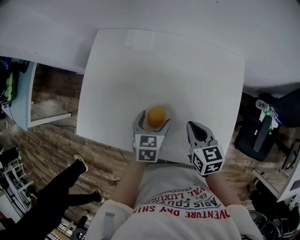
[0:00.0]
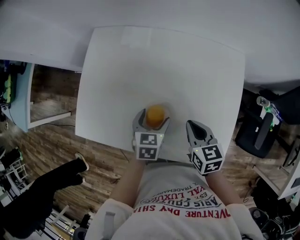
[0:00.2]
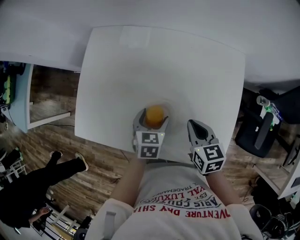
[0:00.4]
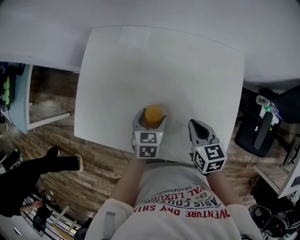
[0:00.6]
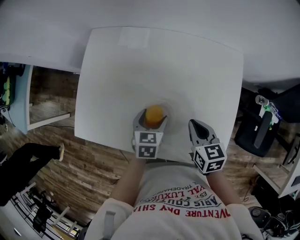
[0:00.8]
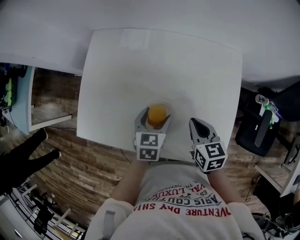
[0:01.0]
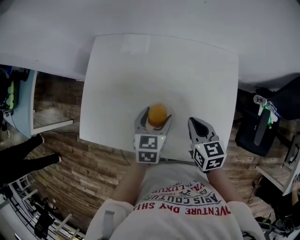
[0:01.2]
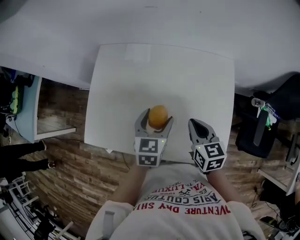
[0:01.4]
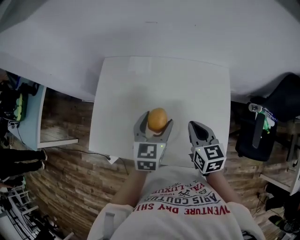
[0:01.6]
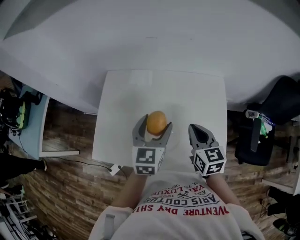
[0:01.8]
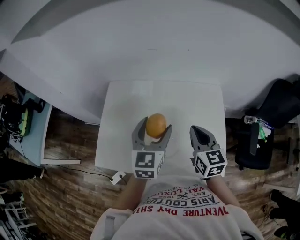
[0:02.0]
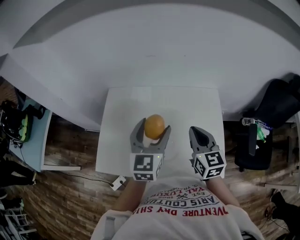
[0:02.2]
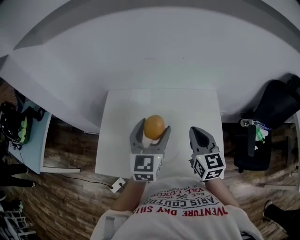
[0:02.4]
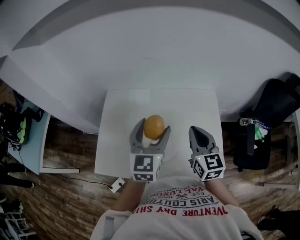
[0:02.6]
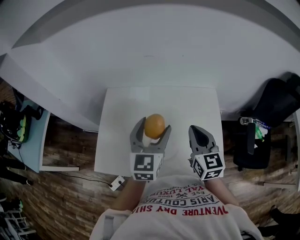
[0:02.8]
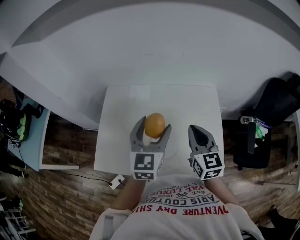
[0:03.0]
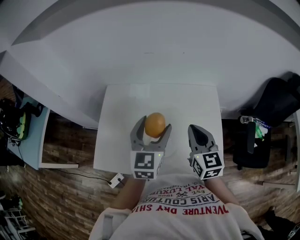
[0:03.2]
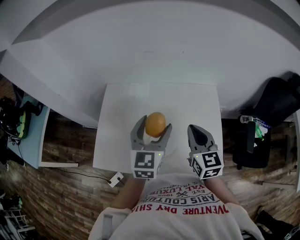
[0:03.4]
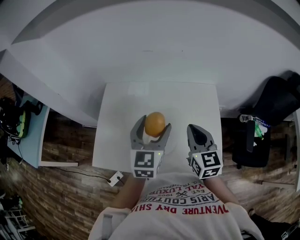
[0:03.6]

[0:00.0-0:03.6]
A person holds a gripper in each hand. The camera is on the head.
0:00.0 to 0:01.8: The left gripper heads upward, covering approximately 20 cm, and rotates roughly 30 degrees. Meanwhile the right gripper travels upward by roughly 15 cm.
0:01.8 to 0:03.6: Both grippers move upward, some 5 cm.

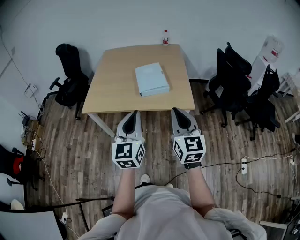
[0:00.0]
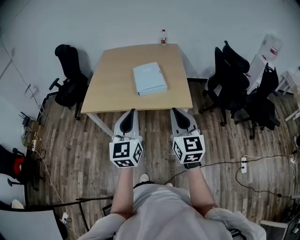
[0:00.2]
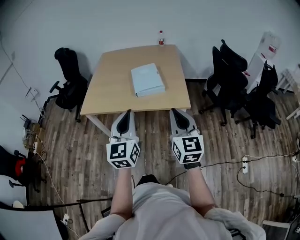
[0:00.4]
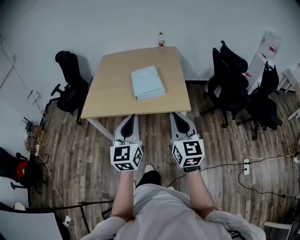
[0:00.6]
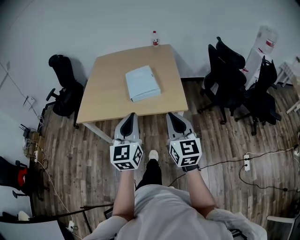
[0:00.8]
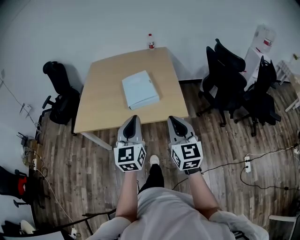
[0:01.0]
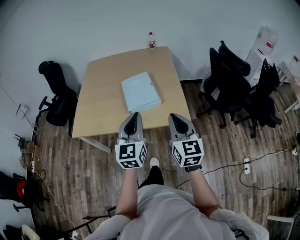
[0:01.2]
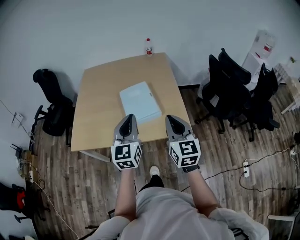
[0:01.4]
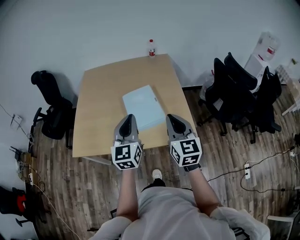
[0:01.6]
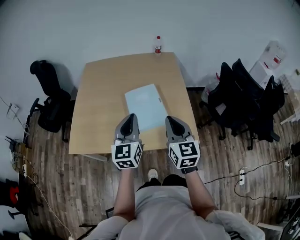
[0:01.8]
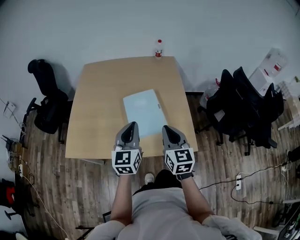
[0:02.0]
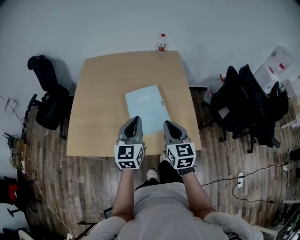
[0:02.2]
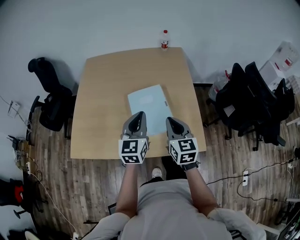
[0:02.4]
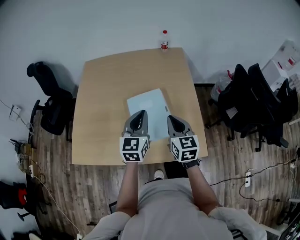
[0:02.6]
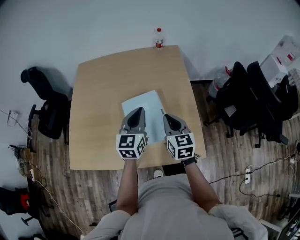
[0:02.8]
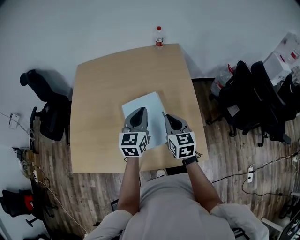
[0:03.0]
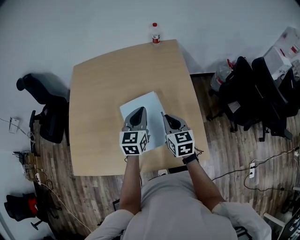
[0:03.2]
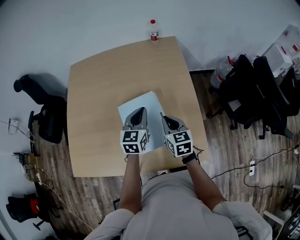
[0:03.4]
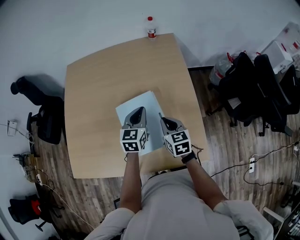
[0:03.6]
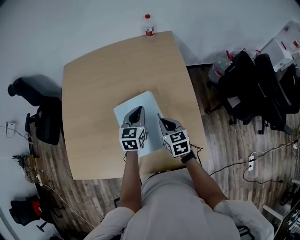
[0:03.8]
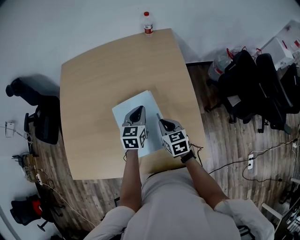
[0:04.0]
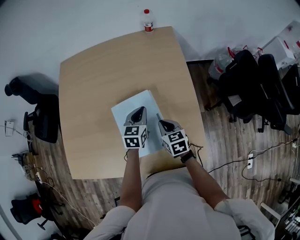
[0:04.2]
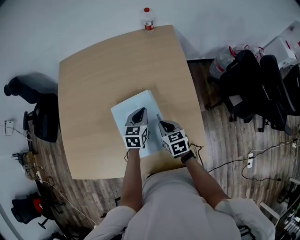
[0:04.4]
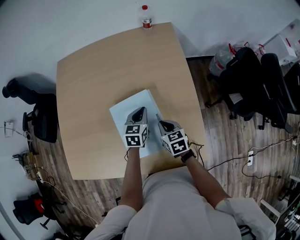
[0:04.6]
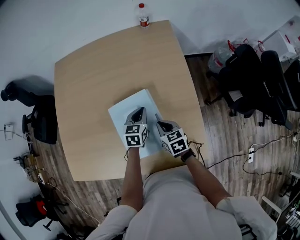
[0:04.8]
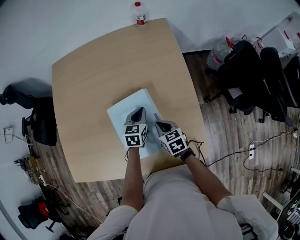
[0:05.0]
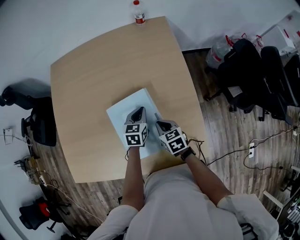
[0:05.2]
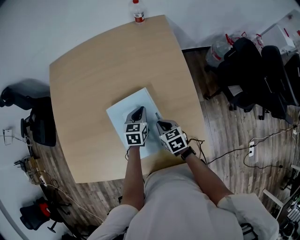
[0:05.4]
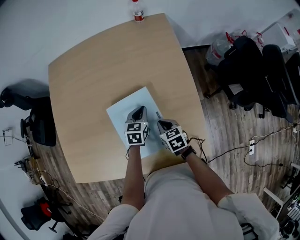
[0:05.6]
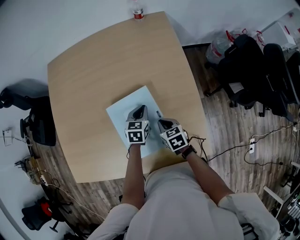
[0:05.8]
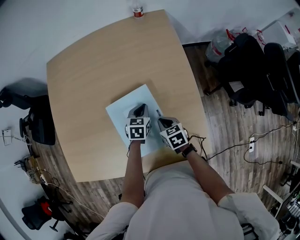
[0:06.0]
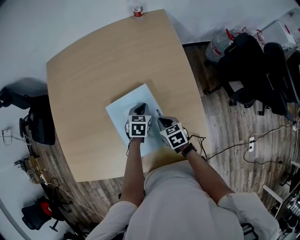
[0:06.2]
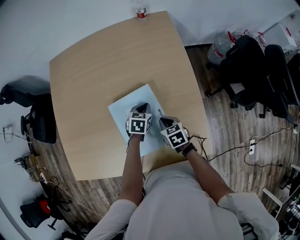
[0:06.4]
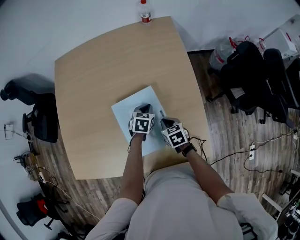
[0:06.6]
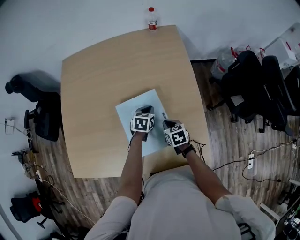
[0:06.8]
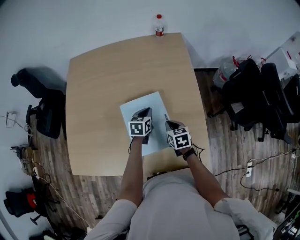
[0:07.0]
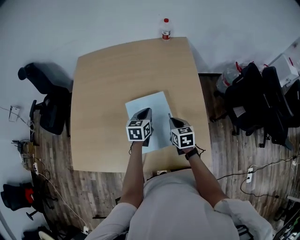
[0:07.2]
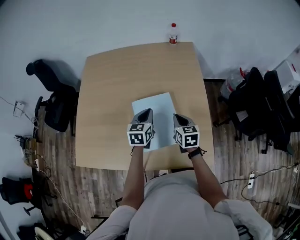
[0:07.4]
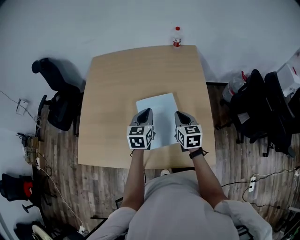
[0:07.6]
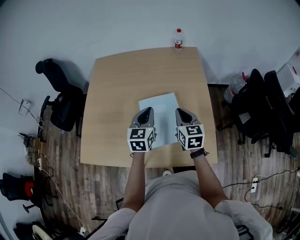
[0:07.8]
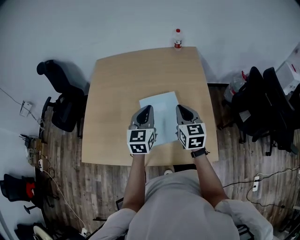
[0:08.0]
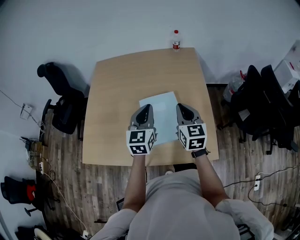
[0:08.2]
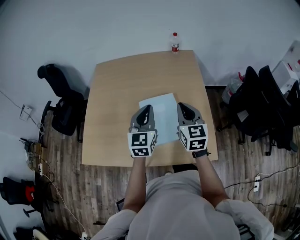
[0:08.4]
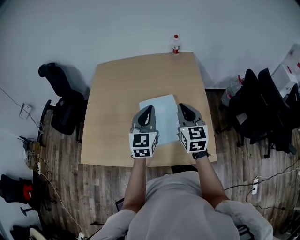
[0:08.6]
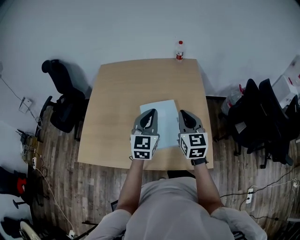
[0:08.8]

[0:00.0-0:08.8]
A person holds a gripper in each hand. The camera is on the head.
0:00.0 to 0:01.4: Both grippers move forward, roughly 25 cm.
0:01.4 to 0:03.0: The right gripper heads forward and downward, covering about 35 cm; the left gripper goes about 30 cm forward.
0:03.0 to 0:04.4: The right gripper shifts approximately 15 cm downward, and changes its angle by some 20 degrees. The left gripper shifts some 20 cm downward and forward, and turns by roughly 20 degrees.
0:04.4 to 0:05.8: The grippers both shift downward by approximately 5 cm.
0:05.8 to 0:07.4: The right gripper goes approximately 10 cm upward; the left gripper travels upward and to the left by about 15 cm.
0:07.4 to 0:08.8: Both grippers travel together upward and backward, some 20 cm. The left gripper swivels some 30 degrees. The right gripper turns by some 30 degrees.

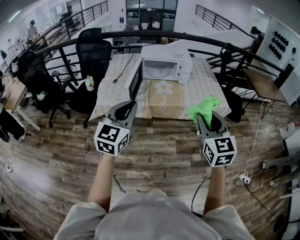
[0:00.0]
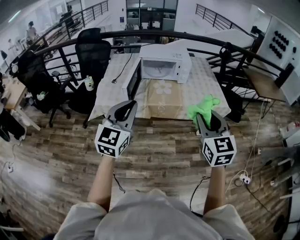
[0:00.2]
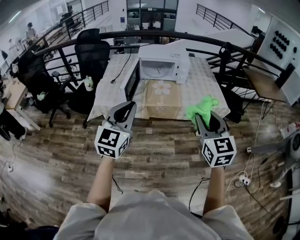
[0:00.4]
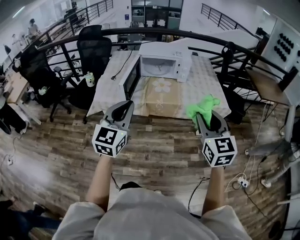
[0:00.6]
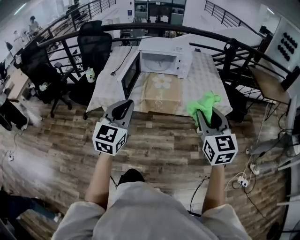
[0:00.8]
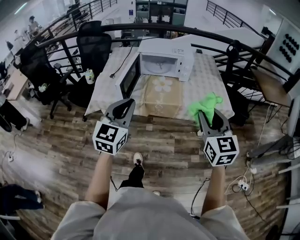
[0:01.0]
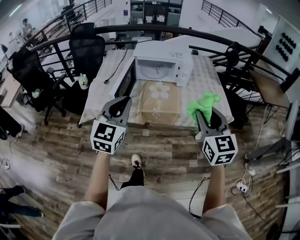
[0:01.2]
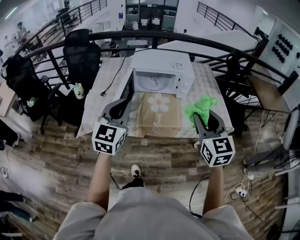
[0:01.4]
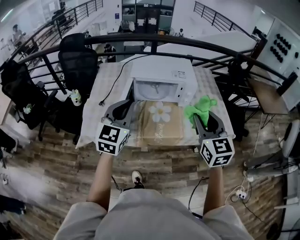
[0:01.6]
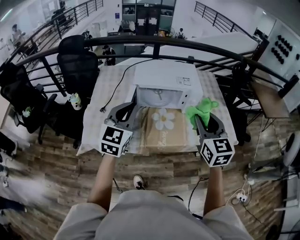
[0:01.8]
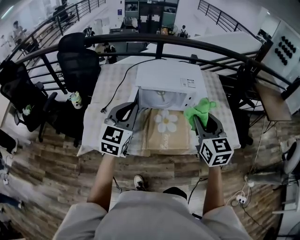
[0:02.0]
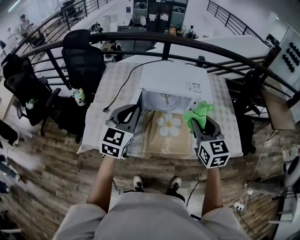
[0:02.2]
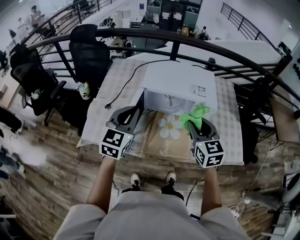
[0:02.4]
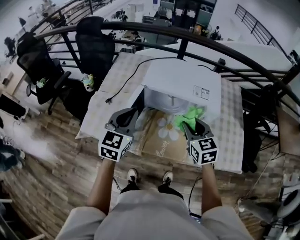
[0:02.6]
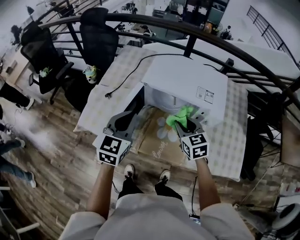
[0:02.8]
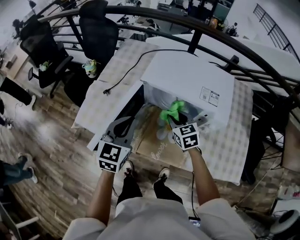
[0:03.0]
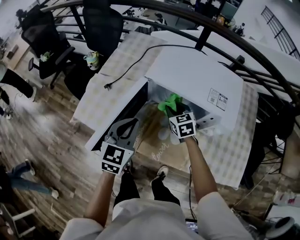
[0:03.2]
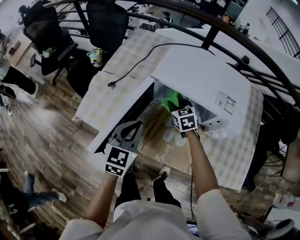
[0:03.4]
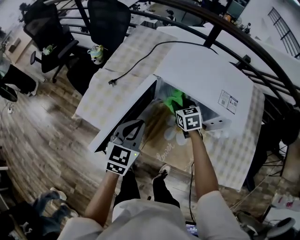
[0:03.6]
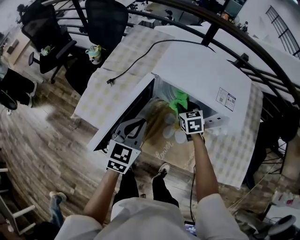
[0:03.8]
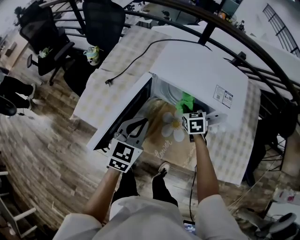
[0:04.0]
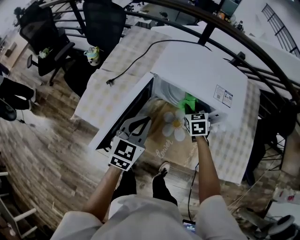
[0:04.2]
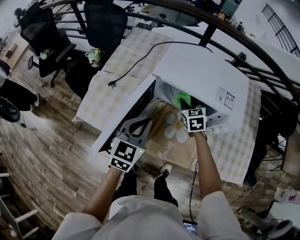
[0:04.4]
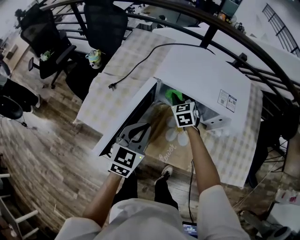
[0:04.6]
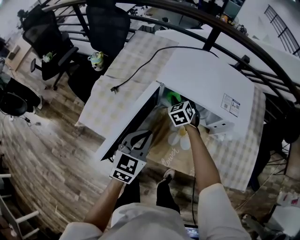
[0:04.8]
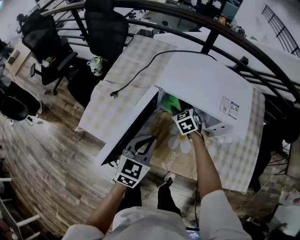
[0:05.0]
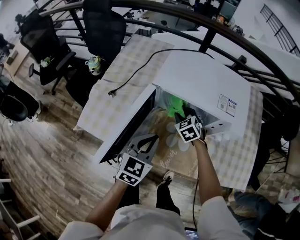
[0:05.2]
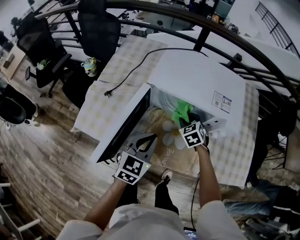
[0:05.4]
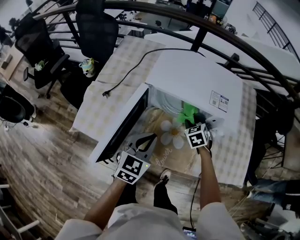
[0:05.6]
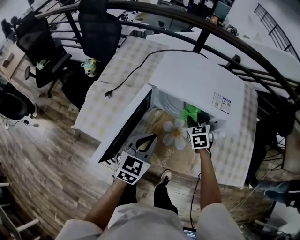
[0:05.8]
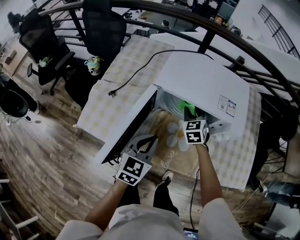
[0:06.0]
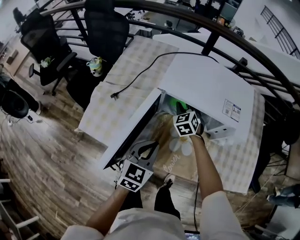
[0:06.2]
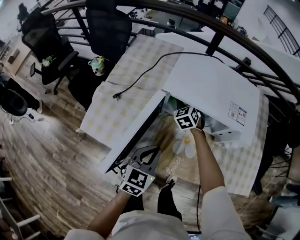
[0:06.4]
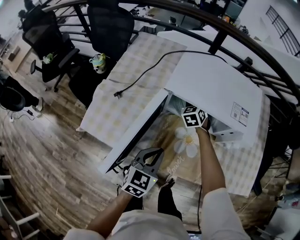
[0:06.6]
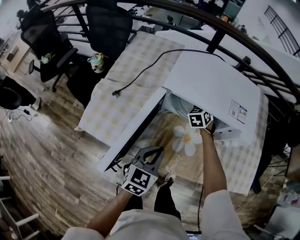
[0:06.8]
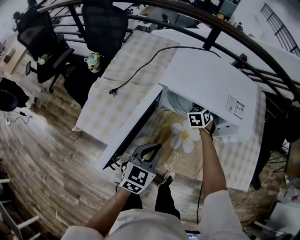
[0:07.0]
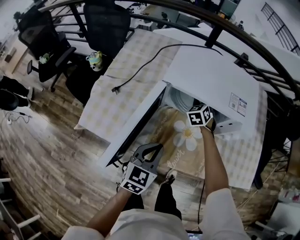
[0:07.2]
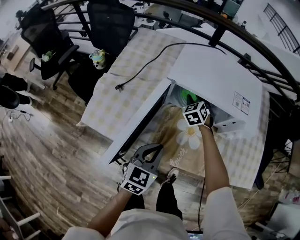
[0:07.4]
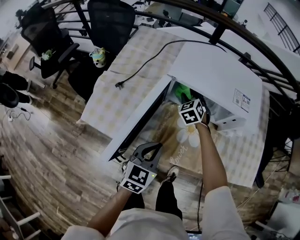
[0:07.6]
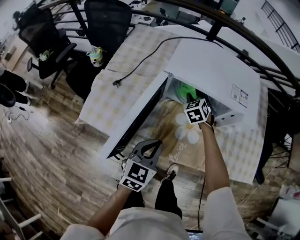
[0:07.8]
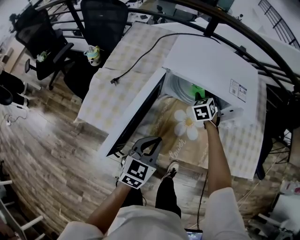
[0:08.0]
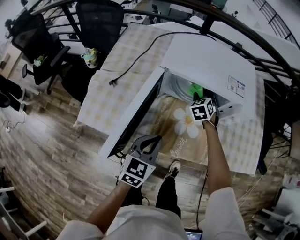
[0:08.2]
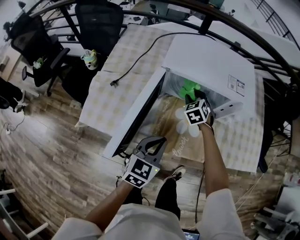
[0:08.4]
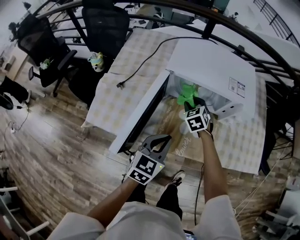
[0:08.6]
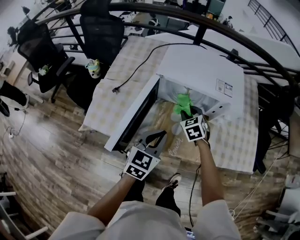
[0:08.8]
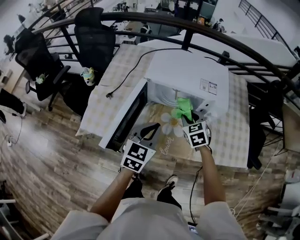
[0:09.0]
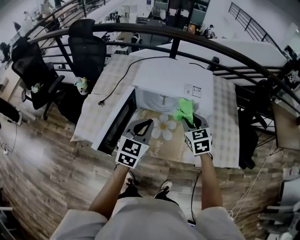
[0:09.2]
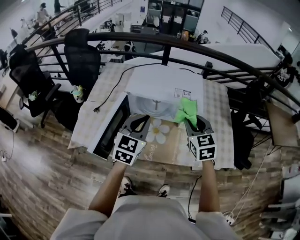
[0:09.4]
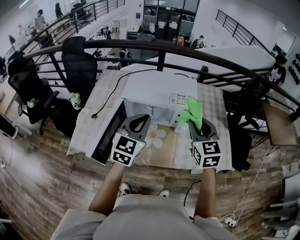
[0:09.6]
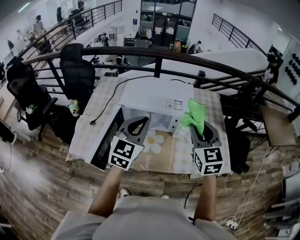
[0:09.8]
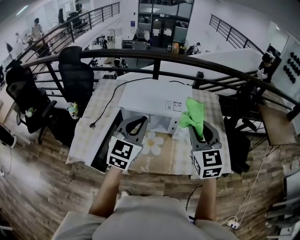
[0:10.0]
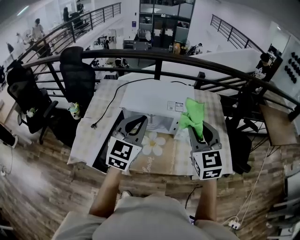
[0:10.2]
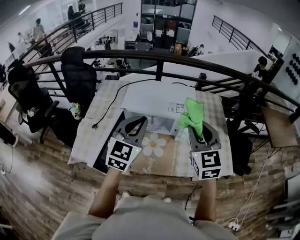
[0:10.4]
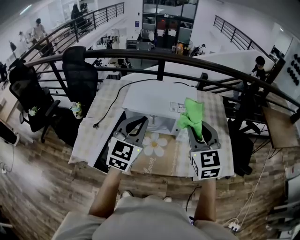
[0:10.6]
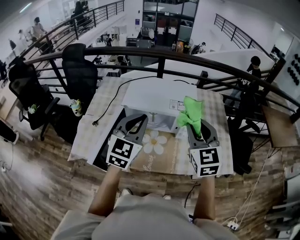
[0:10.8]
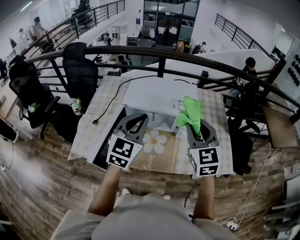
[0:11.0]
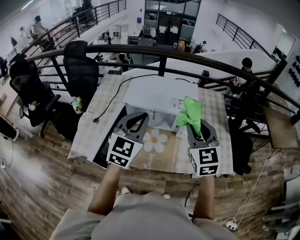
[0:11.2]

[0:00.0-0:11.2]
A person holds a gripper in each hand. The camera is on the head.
0:00.0 to 0:01.6: The grippers both shift forward by roughly 30 cm.
0:01.6 to 0:03.2: The left gripper is displaced downward by some 20 cm, and swivels some 30 degrees, while the right gripper changes place by roughly 50 cm, and turns by approximately 40 degrees.
0:03.2 to 0:04.8: The right gripper is displaced forward by some 10 cm, travels to the right and back again, about 10 cm each way, and changes its angle by some 20 degrees.
0:04.8 to 0:06.4: The right gripper goes to the right and returns, roughly 15 cm each way.
0:06.4 to 0:08.0: The right gripper moves left and right over approximately 10 cm, changing direction 2 times.
0:08.0 to 0:09.6: The right gripper travels upward, backward and to the right by some 40 cm, and turns by about 30 degrees; the left gripper heads upward, covering roughly 25 cm, and swivels roughly 20 degrees.
0:09.6 to 0:11.2: The right gripper ends up roughly 5 cm from where it was.
